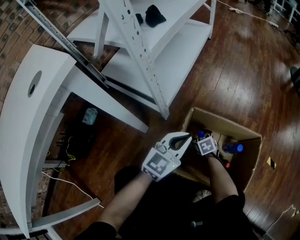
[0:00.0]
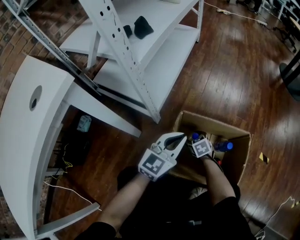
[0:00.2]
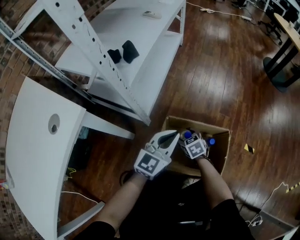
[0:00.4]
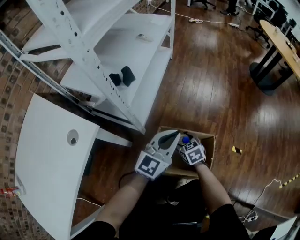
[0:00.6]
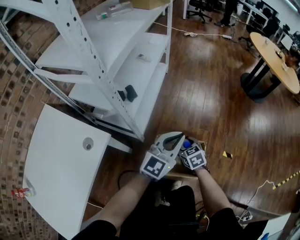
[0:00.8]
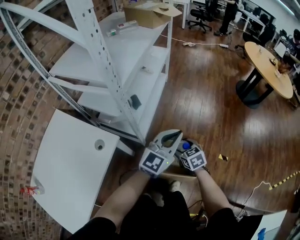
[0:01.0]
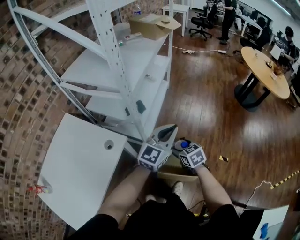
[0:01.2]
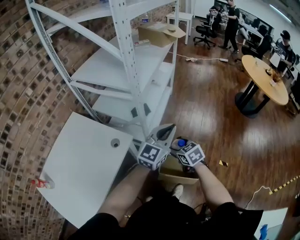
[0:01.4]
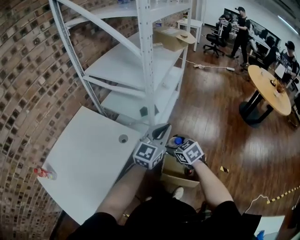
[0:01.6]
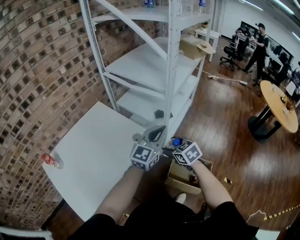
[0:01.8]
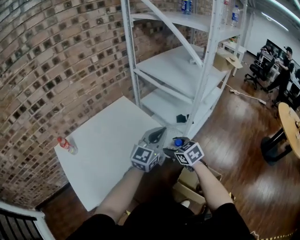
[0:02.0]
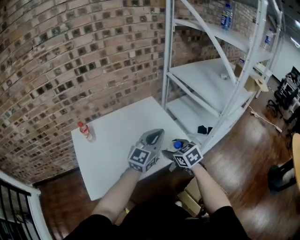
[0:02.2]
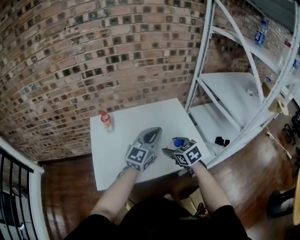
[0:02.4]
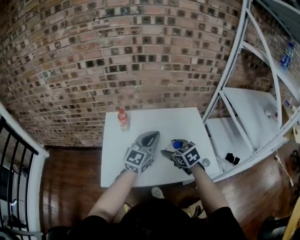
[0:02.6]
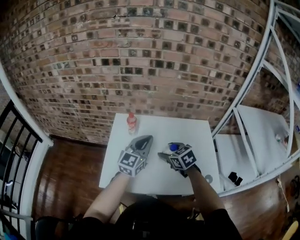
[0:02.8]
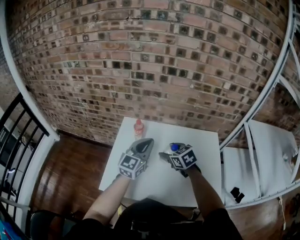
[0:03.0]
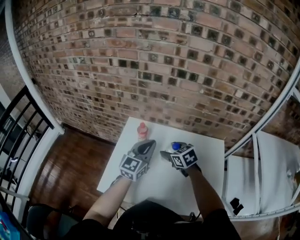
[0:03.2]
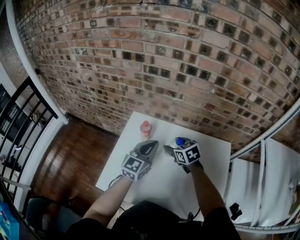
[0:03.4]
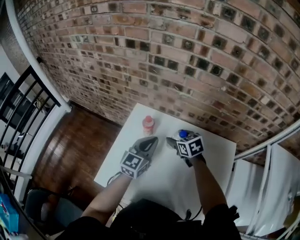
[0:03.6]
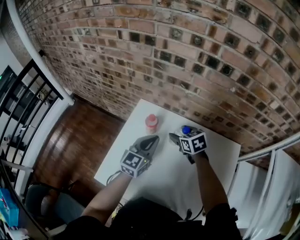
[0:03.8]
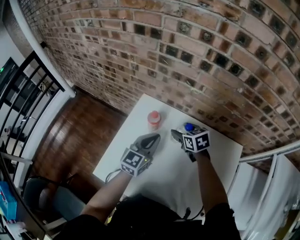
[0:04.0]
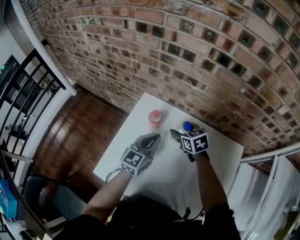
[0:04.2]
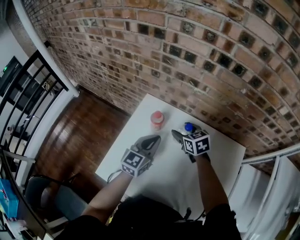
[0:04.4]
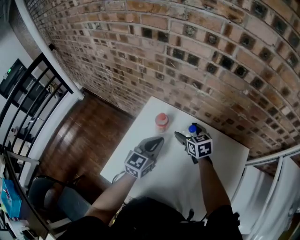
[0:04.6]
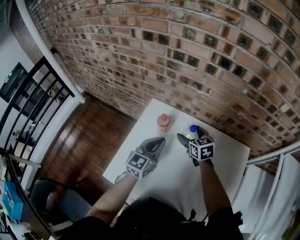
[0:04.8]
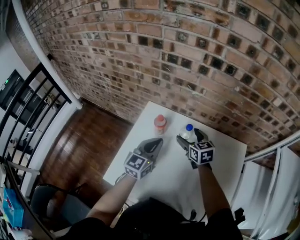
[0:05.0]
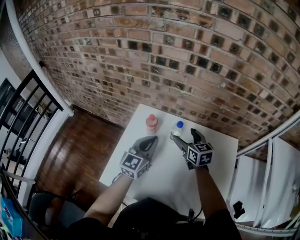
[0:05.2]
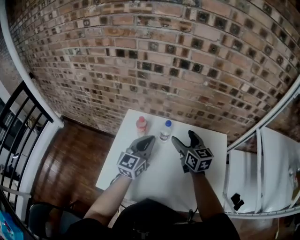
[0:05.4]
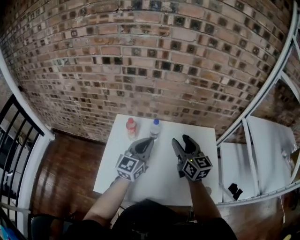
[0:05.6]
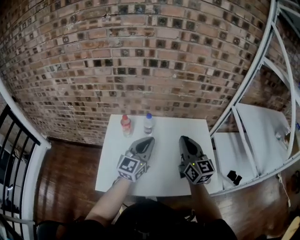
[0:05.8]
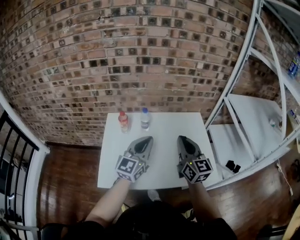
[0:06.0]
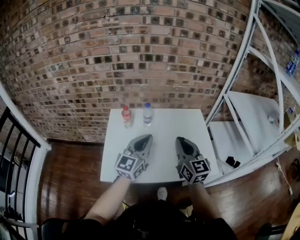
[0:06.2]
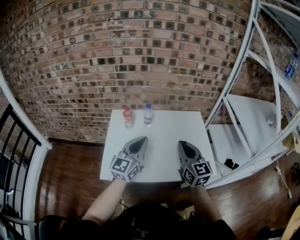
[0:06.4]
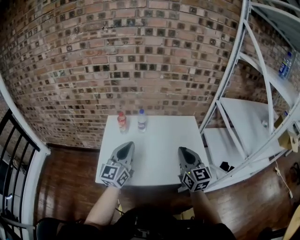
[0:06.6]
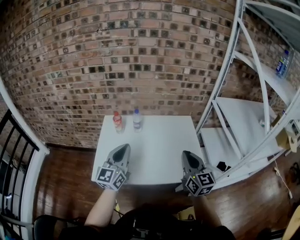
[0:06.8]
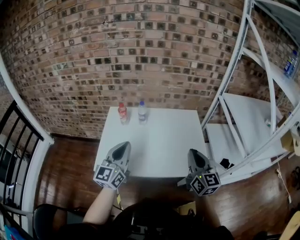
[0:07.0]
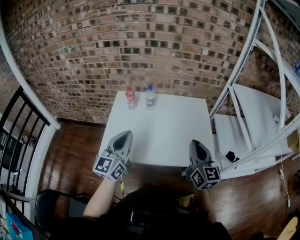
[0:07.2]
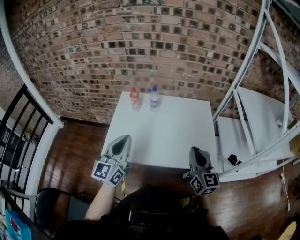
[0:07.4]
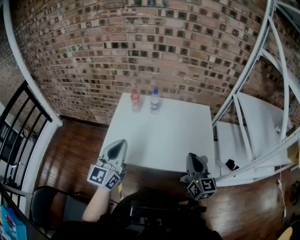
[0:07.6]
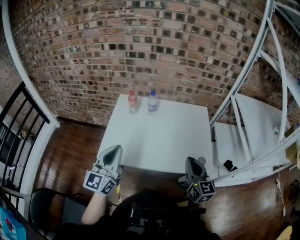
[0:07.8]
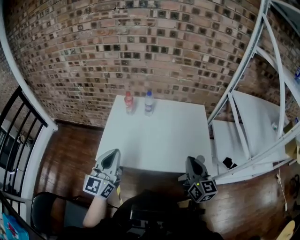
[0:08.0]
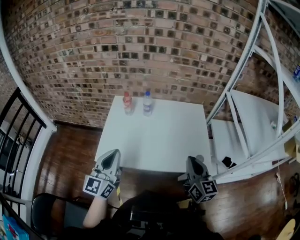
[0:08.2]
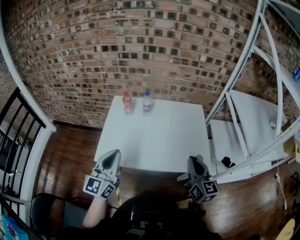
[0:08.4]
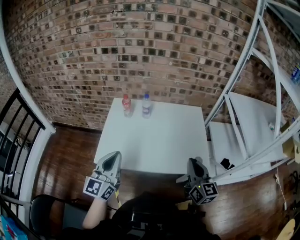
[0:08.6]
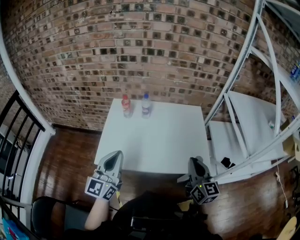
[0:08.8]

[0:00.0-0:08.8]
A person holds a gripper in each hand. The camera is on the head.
0:00.0 to 0:01.4: Both grippers move upward, roughly 70 cm.
0:01.4 to 0:03.0: The two grippers travel together, about 70 cm. The right gripper swivels approximately 80 degrees, while the left gripper swivels some 80 degrees.
0:03.0 to 0:04.4: The left gripper travels downward and forward by about 15 cm, and turns by approximately 20 degrees. Meanwhile the right gripper goes approximately 20 cm forward and downward.
0:04.4 to 0:05.8: The left gripper shifts by roughly 20 cm, and rotates some 30 degrees; the right gripper shifts by some 35 cm, tips its fingers upward by roughly 40 degrees, and closes.
0:05.8 to 0:07.4: Both grippers travel together backward, approximately 20 cm.
0:07.4 to 0:08.8: The grippers move only a little.

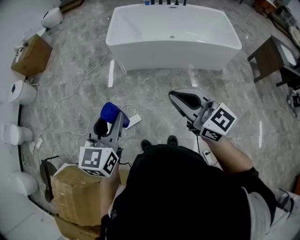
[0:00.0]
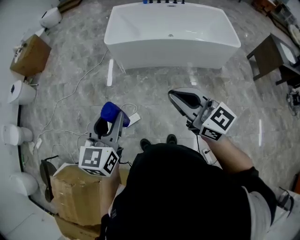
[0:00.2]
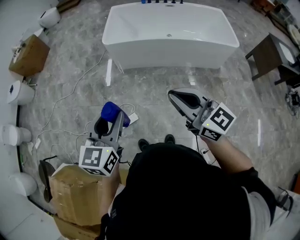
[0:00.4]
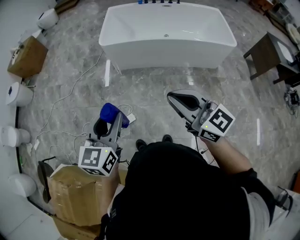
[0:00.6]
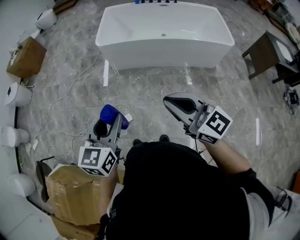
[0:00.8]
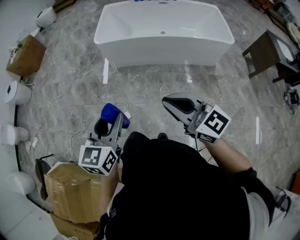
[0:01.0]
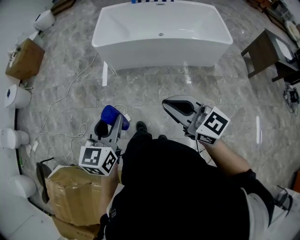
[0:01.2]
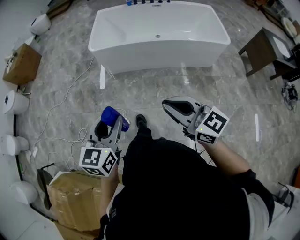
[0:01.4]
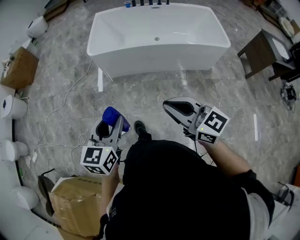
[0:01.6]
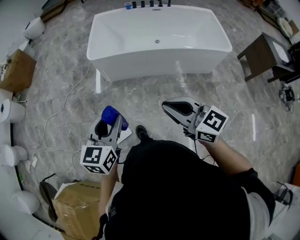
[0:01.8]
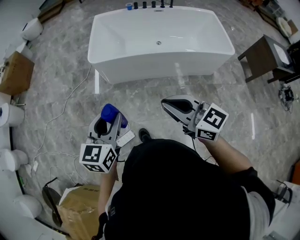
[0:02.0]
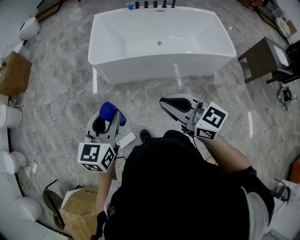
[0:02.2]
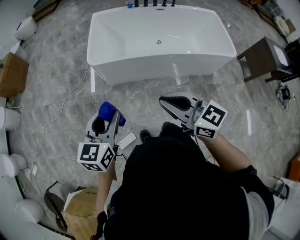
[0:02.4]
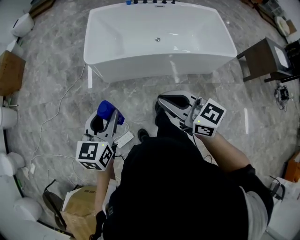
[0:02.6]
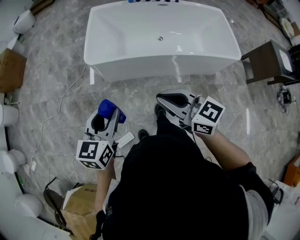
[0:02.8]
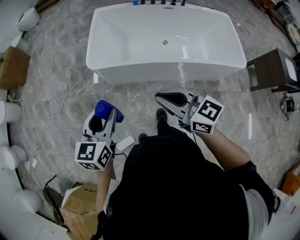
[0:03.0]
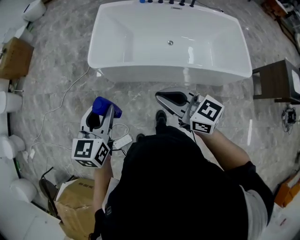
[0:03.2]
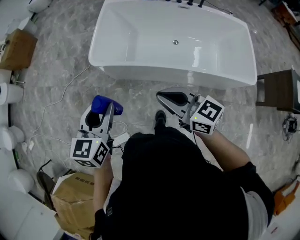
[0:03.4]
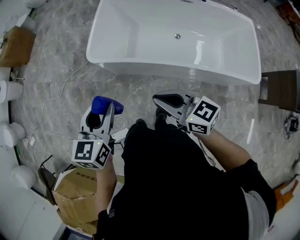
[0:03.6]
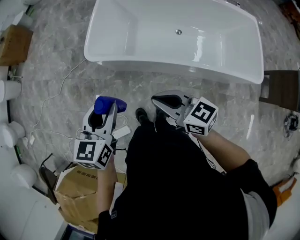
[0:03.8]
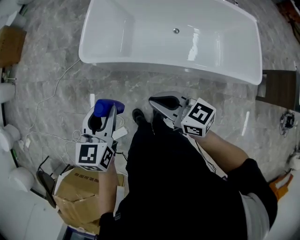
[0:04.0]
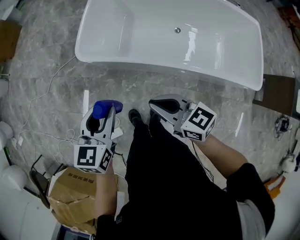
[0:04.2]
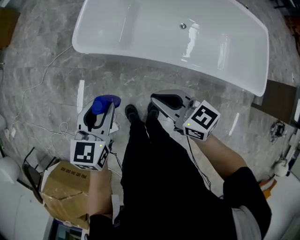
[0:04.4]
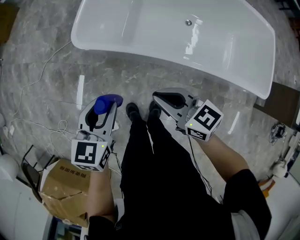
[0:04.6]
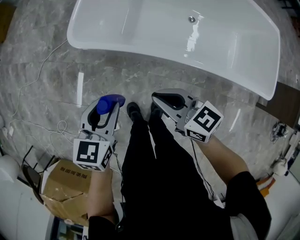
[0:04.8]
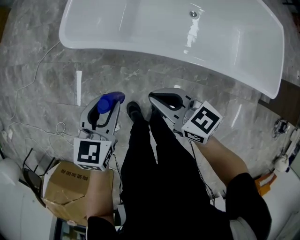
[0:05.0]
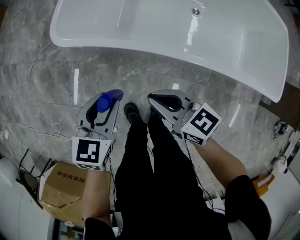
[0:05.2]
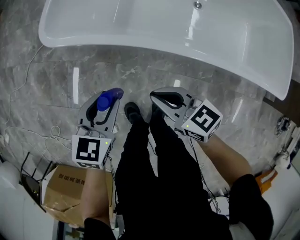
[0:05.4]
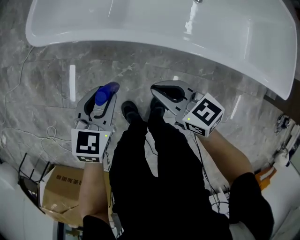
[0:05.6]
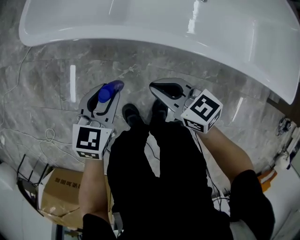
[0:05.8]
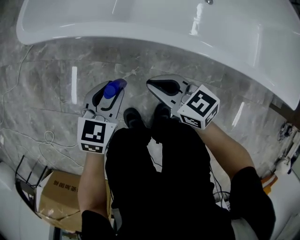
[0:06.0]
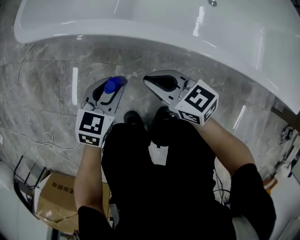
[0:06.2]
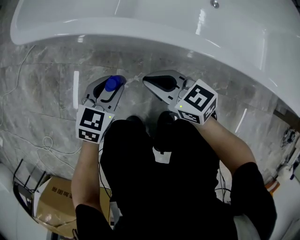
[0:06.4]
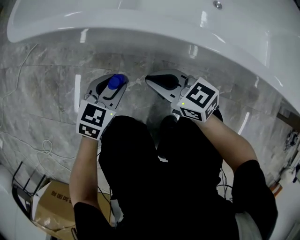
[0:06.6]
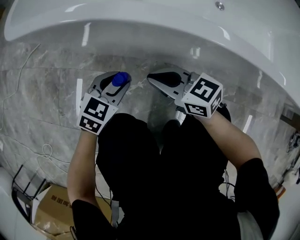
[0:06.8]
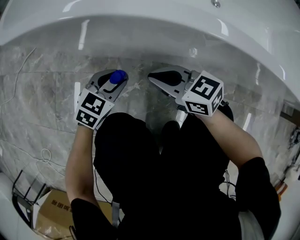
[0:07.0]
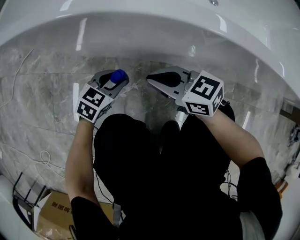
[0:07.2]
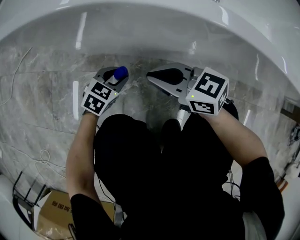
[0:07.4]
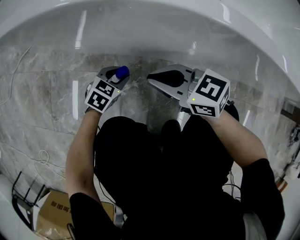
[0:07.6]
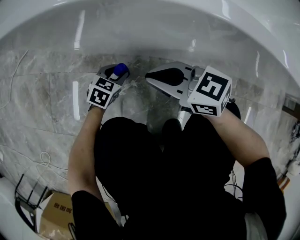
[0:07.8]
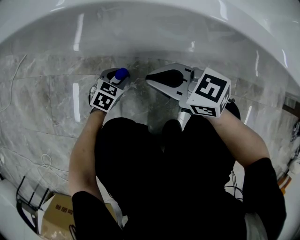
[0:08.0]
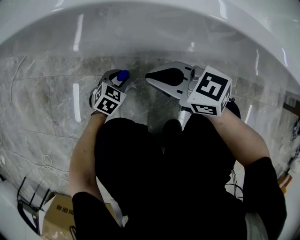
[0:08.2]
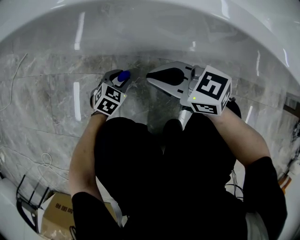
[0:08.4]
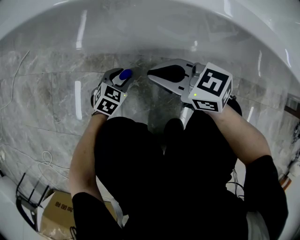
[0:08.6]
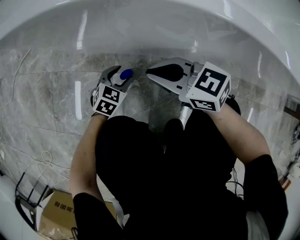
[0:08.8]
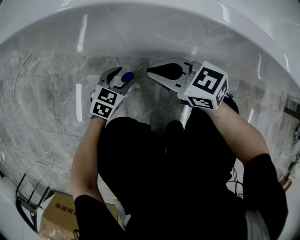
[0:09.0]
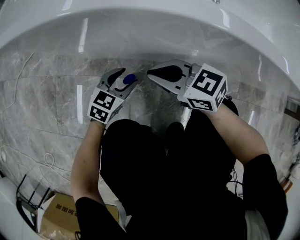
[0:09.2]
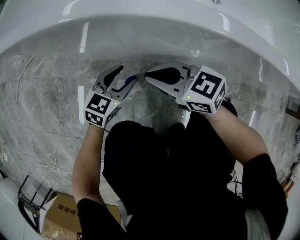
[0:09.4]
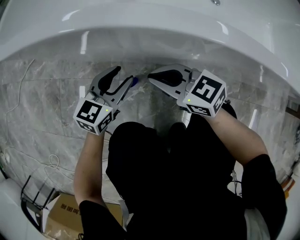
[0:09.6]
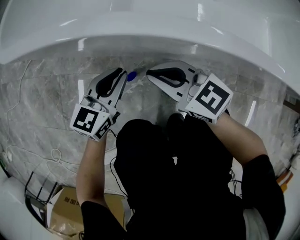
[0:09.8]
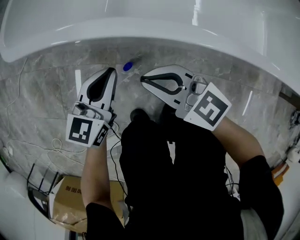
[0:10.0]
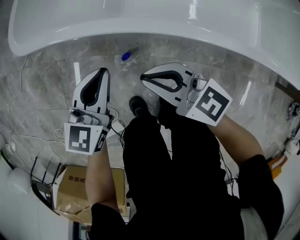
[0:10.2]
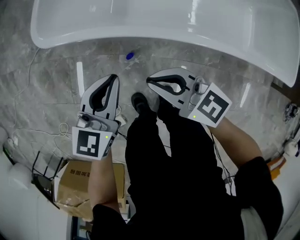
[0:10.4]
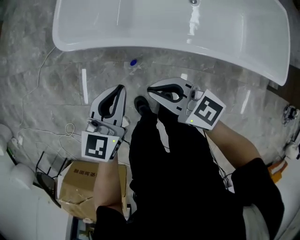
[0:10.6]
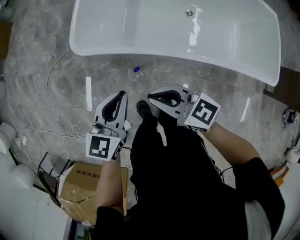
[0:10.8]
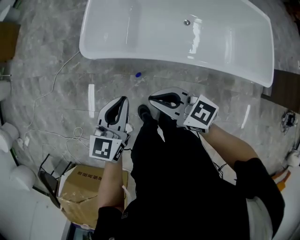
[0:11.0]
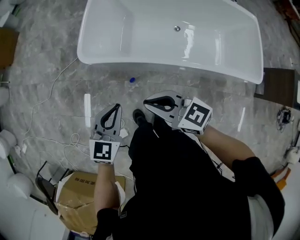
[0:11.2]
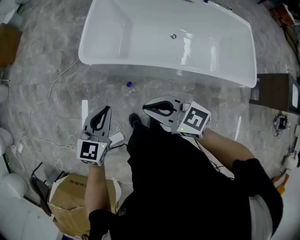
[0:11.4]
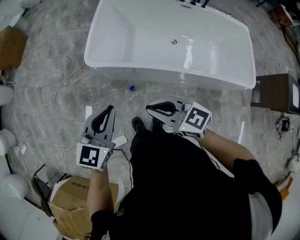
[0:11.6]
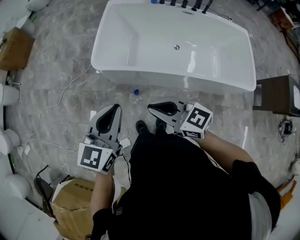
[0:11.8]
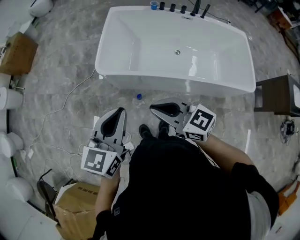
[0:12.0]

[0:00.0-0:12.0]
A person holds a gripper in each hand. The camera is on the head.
0:00.0 to 0:01.6: The right gripper heads to the right, covering some 10 cm. The left gripper goes about 15 cm to the right, forward and downward.
0:01.6 to 0:03.0: The two grippers go roughly 35 cm forward.
0:03.0 to 0:04.4: Both grippers travel together downward and forward, roughly 25 cm.
0:04.4 to 0:06.0: The two grippers go roughly 40 cm downward.
0:06.0 to 0:07.6: The left gripper travels downward by roughly 30 cm, and rotates about 20 degrees, while the right gripper is displaced downward by roughly 15 cm.
0:07.6 to 0:09.0: The left gripper opens up.
0:09.0 to 0:10.4: The right gripper is displaced upward by about 30 cm, while the left gripper moves upward, about 50 cm, turns by approximately 30 degrees, and closes its fingers.
0:10.4 to 0:12.0: Both grippers travel together upward, some 40 cm.

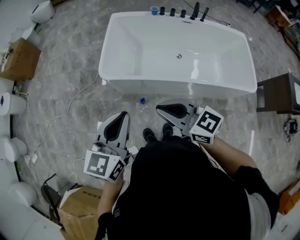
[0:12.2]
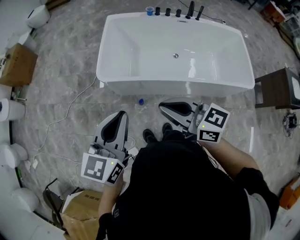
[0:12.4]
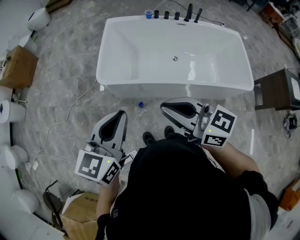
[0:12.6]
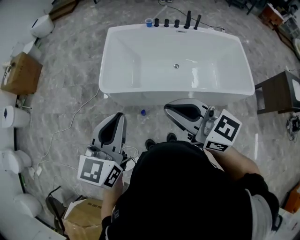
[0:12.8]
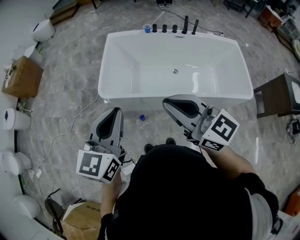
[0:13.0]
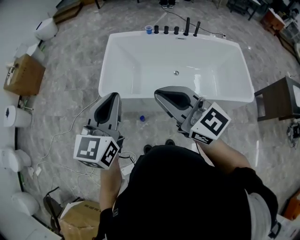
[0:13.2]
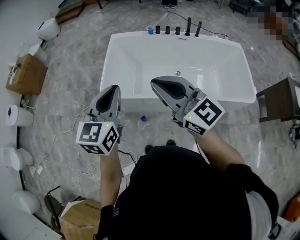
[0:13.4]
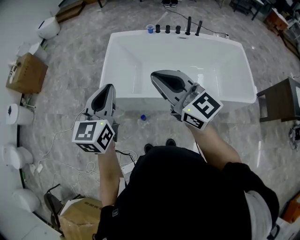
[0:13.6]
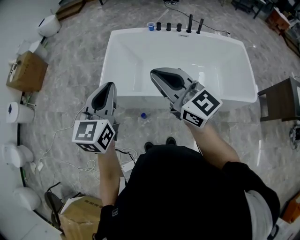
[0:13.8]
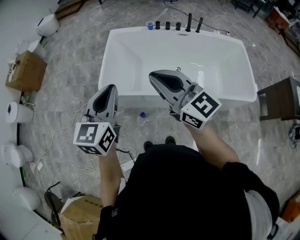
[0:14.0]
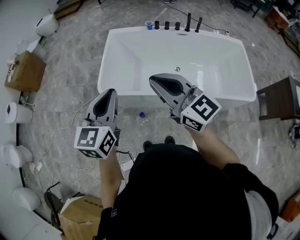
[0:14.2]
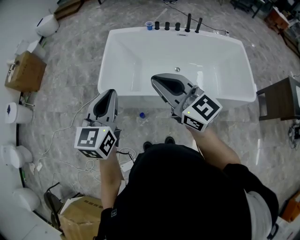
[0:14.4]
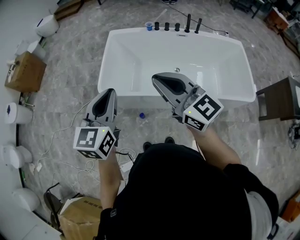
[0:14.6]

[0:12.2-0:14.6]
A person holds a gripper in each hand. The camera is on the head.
0:12.2 to 0:13.4: The right gripper travels upward, to the right and forward by some 15 cm, and rotates about 30 degrees, while the left gripper travels forward, to the right and upward by about 15 cm.
0:13.4 to 0:14.6: The grippers move only a little.
